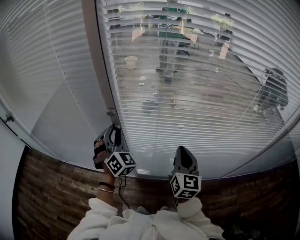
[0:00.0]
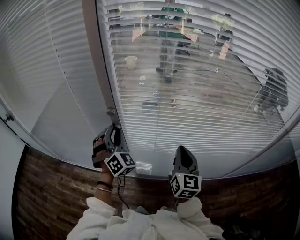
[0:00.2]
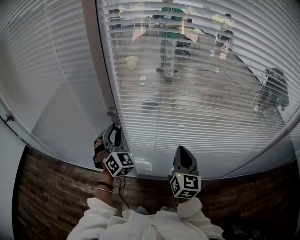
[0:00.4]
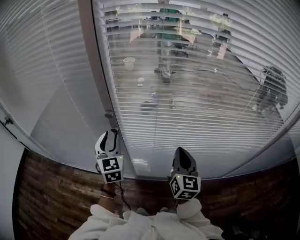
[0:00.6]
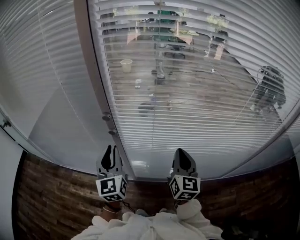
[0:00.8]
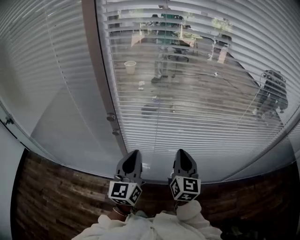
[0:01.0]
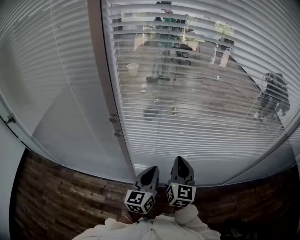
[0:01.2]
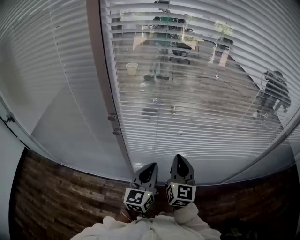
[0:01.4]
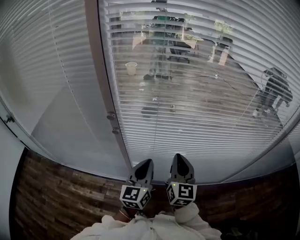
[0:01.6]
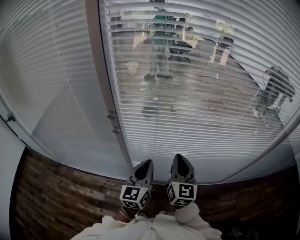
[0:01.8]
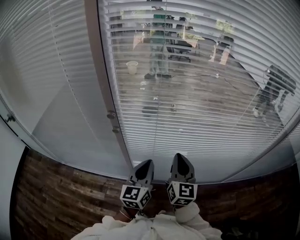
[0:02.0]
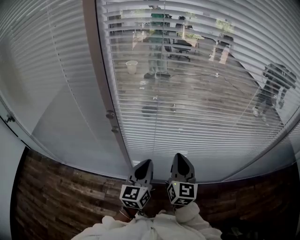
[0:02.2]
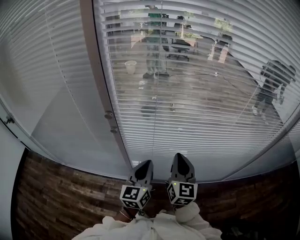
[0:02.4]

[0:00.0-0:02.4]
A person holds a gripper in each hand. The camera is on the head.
0:00.0 to 0:01.2: The left gripper moves to the right and backward, roughly 20 cm, rolls counterclockwise, seen from behind, by approximately 70 degrees, and closes its fingers.
0:01.2 to 0:02.4: There are only small adjustments of the grippers.

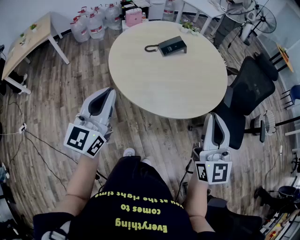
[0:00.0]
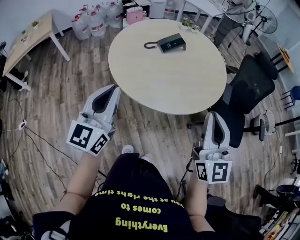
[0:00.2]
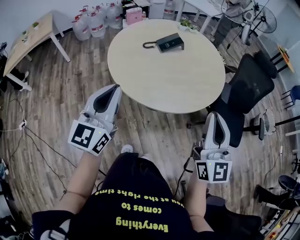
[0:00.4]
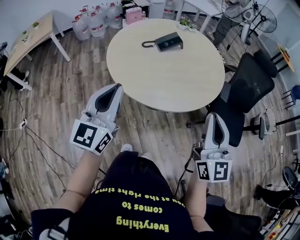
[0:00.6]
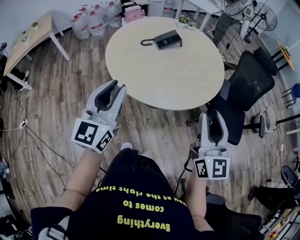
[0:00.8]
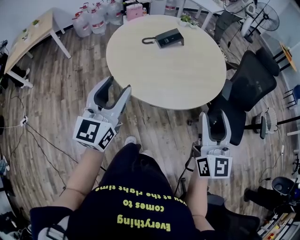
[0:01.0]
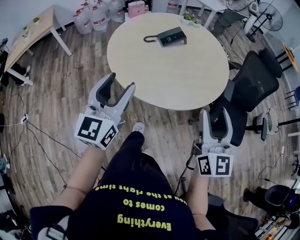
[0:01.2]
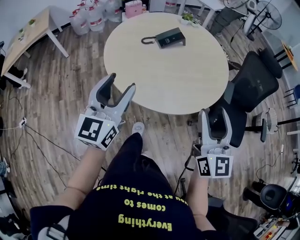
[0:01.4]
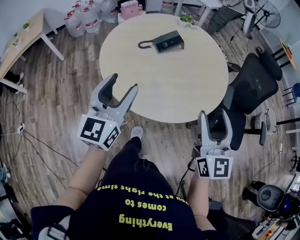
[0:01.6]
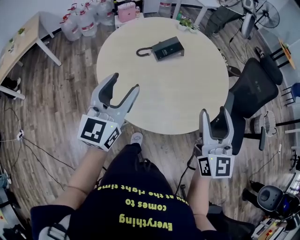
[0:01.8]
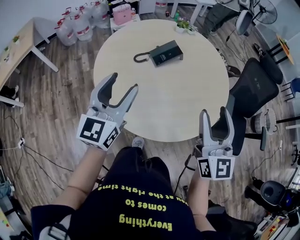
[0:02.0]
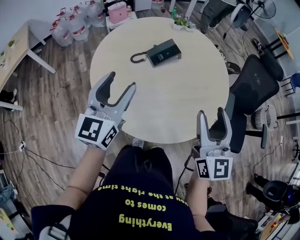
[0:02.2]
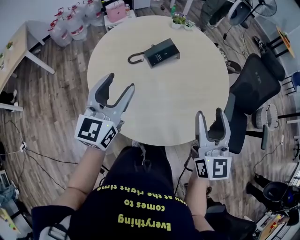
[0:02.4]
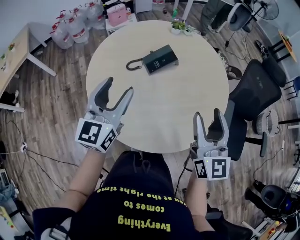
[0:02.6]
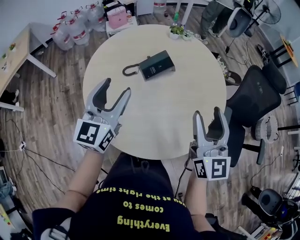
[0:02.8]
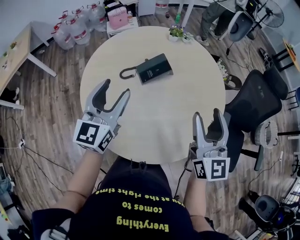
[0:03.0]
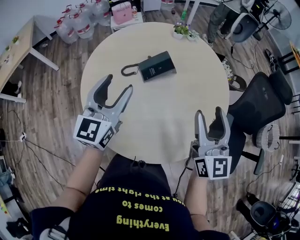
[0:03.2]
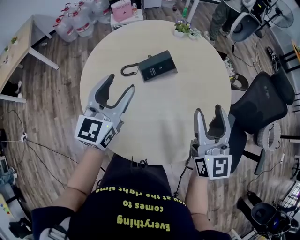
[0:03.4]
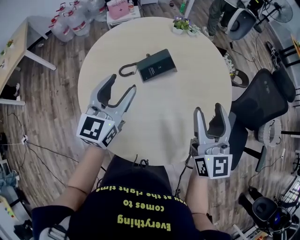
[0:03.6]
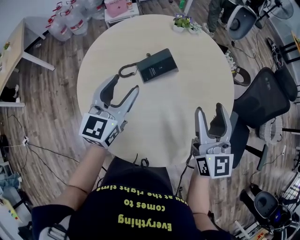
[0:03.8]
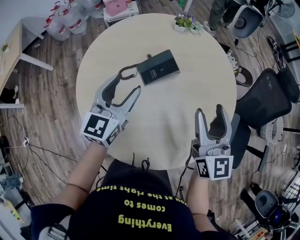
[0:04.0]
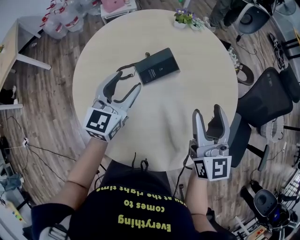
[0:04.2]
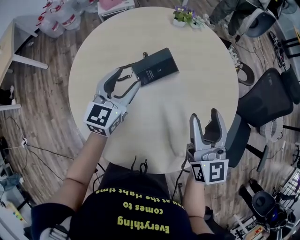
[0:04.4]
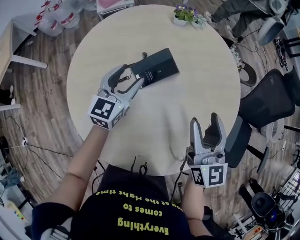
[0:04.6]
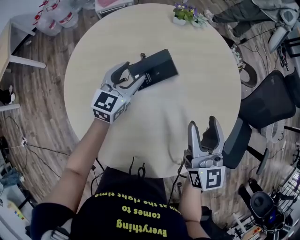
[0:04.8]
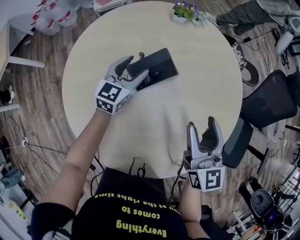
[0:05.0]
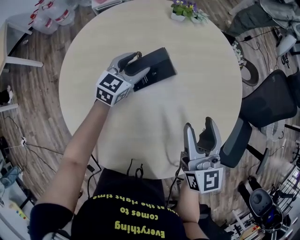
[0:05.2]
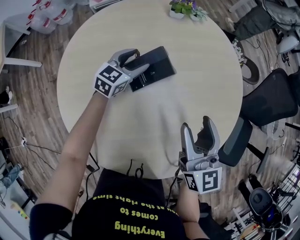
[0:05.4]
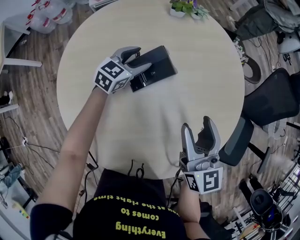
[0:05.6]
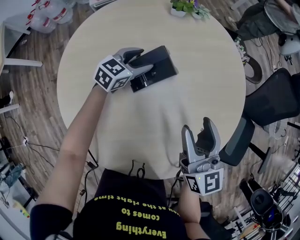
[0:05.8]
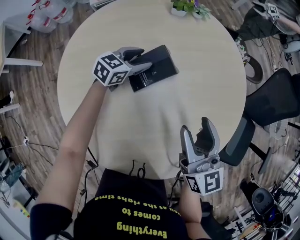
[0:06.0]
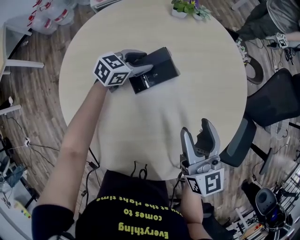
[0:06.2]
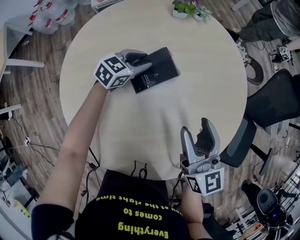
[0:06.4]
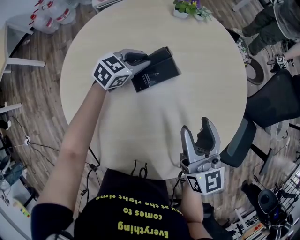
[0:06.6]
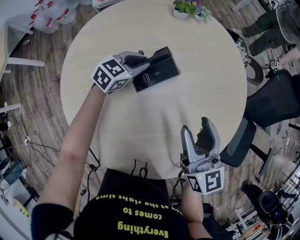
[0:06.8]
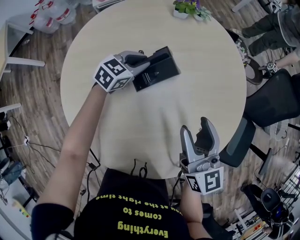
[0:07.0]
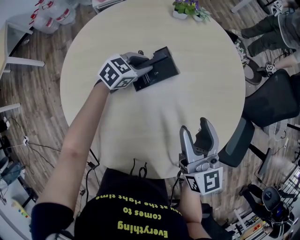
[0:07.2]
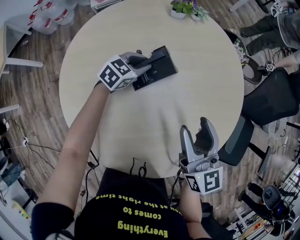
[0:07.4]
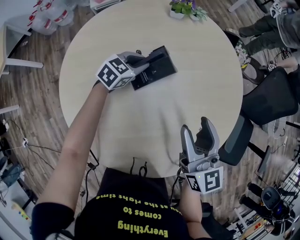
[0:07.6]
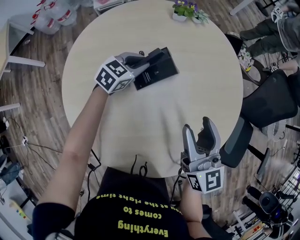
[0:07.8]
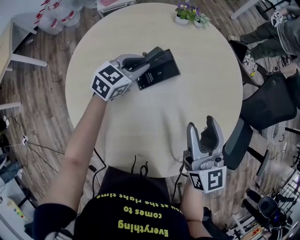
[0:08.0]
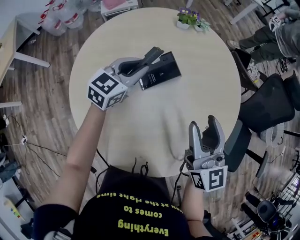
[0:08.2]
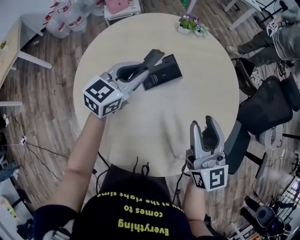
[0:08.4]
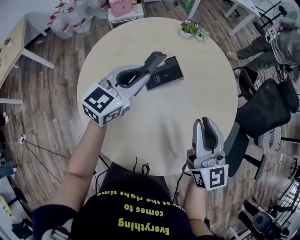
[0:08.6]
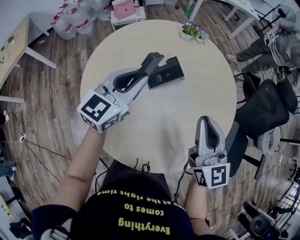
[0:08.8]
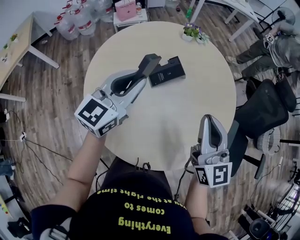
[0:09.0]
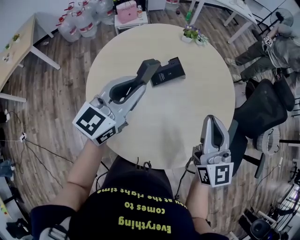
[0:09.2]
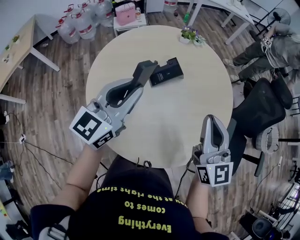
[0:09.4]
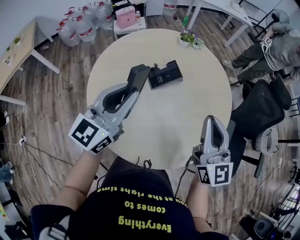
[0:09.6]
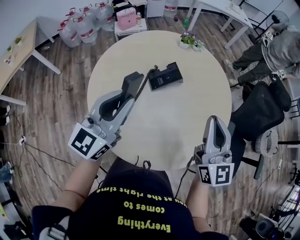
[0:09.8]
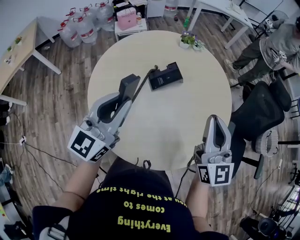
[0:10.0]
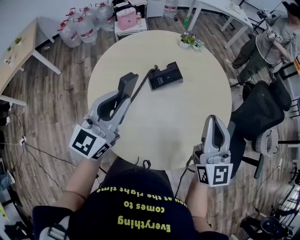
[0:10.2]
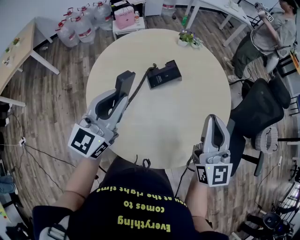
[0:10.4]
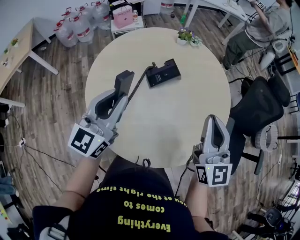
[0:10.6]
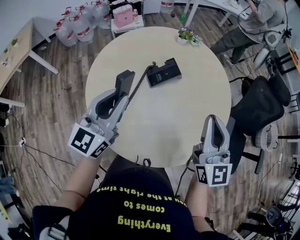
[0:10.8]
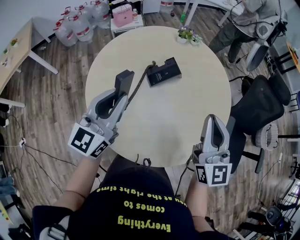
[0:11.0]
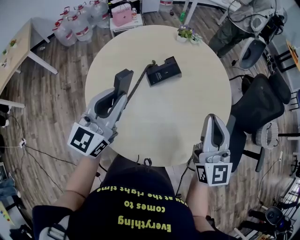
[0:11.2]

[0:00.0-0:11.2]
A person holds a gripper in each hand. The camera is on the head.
0:00.0 to 0:01.6: The left gripper moves forward and to the right, some 10 cm, and opens its fingers. Meanwhile the right gripper goes approximately 10 cm forward, and opens its fingers.
0:01.6 to 0:03.2: Both grippers travel together forward, about 30 cm.
0:03.2 to 0:04.8: The left gripper goes some 30 cm forward and downward, while the right gripper shifts approximately 15 cm downward and forward.
0:04.8 to 0:06.4: The left gripper travels downward and forward by approximately 10 cm, changes its angle by about 30 degrees, and closes its fingers.
0:06.4 to 0:08.0: The left gripper travels upward by about 10 cm.
0:08.0 to 0:09.6: The left gripper heads upward and backward, covering approximately 35 cm, and points its fingers roughly 30 degrees further upward; the right gripper is displaced upward and backward by roughly 15 cm, and closes its fingers.
0:09.6 to 0:11.2: The grippers move only a little.

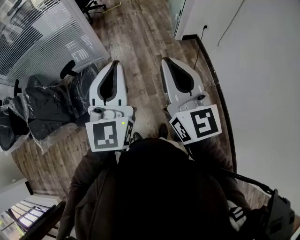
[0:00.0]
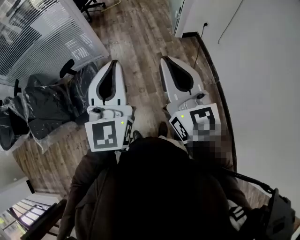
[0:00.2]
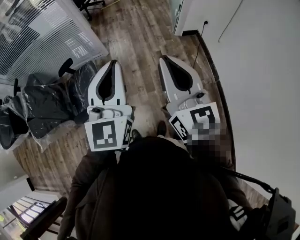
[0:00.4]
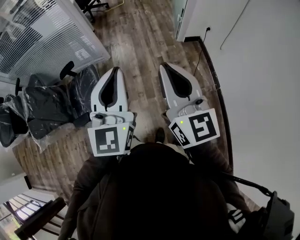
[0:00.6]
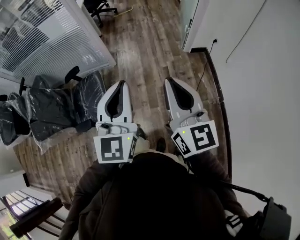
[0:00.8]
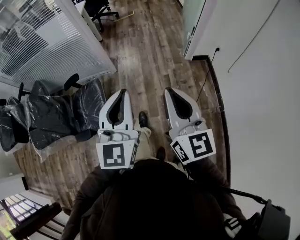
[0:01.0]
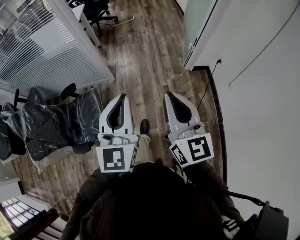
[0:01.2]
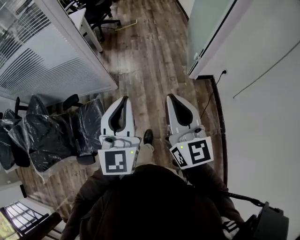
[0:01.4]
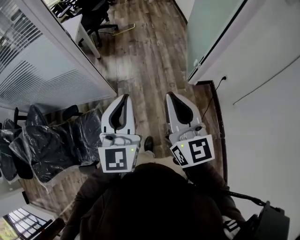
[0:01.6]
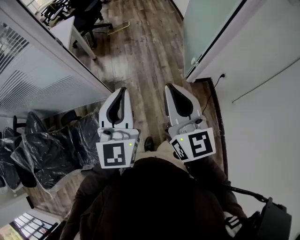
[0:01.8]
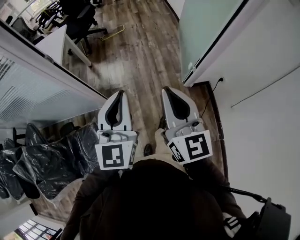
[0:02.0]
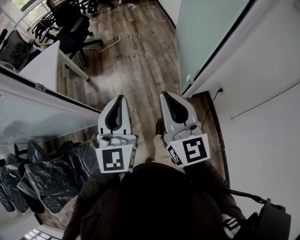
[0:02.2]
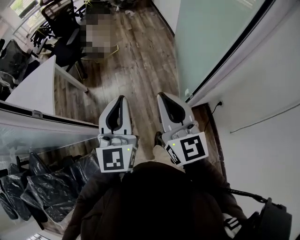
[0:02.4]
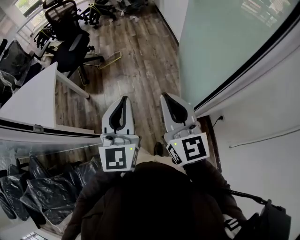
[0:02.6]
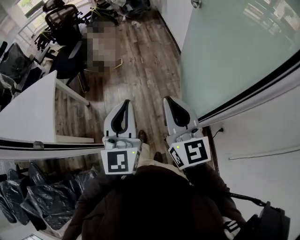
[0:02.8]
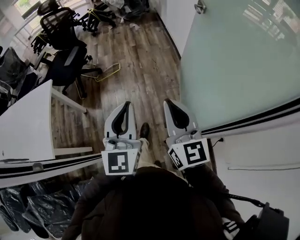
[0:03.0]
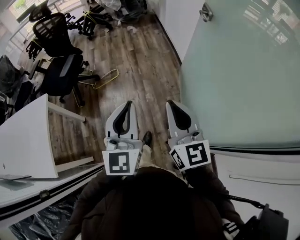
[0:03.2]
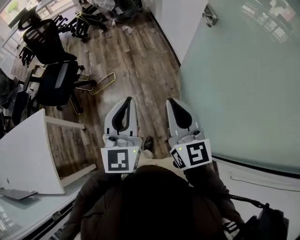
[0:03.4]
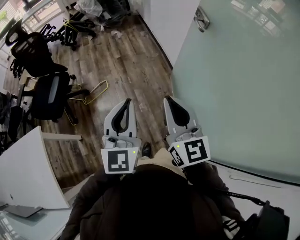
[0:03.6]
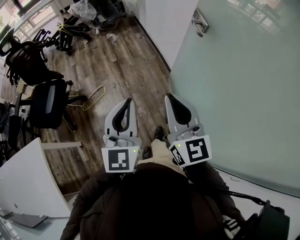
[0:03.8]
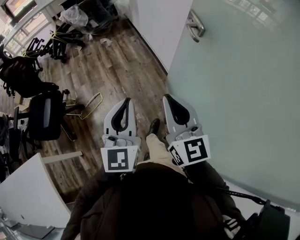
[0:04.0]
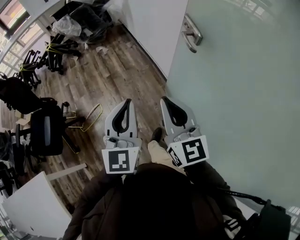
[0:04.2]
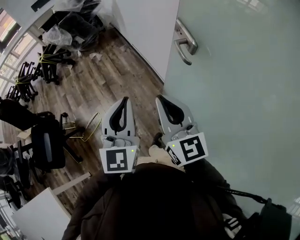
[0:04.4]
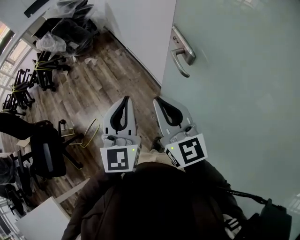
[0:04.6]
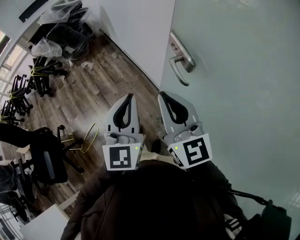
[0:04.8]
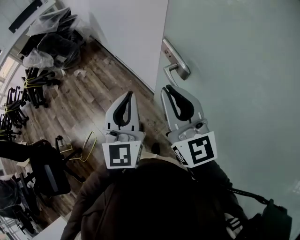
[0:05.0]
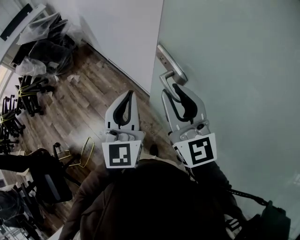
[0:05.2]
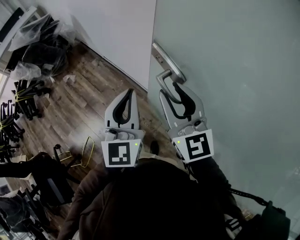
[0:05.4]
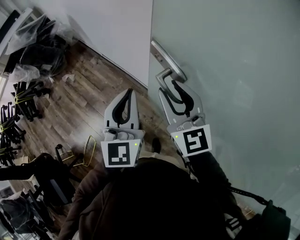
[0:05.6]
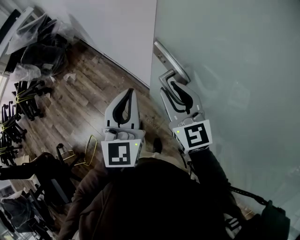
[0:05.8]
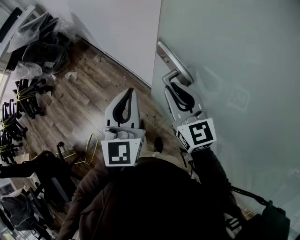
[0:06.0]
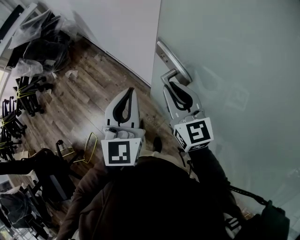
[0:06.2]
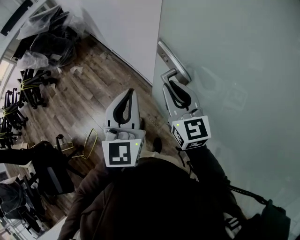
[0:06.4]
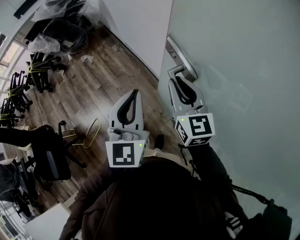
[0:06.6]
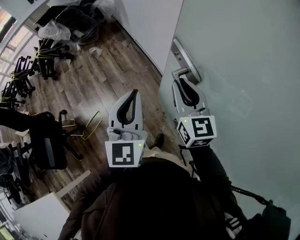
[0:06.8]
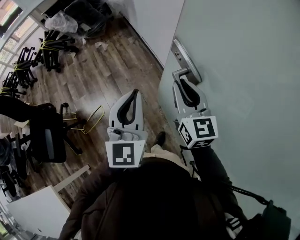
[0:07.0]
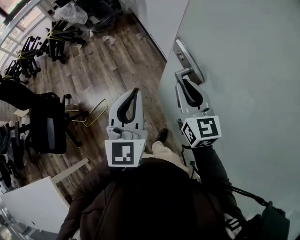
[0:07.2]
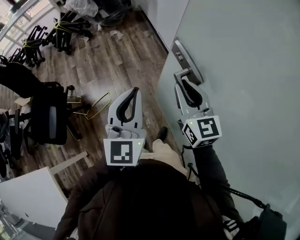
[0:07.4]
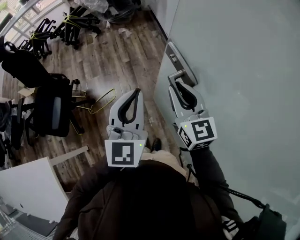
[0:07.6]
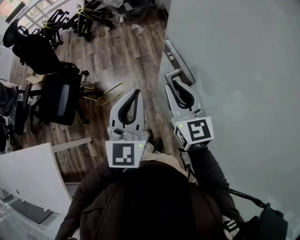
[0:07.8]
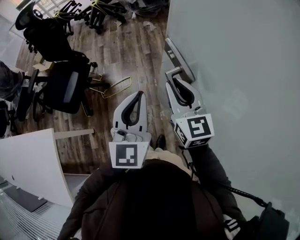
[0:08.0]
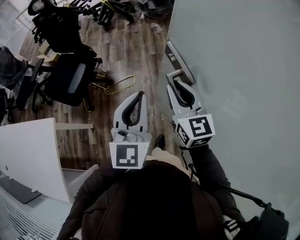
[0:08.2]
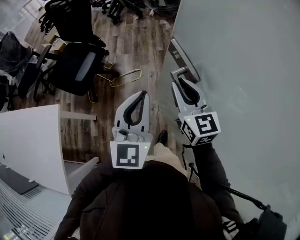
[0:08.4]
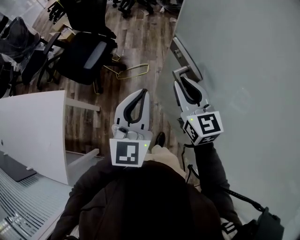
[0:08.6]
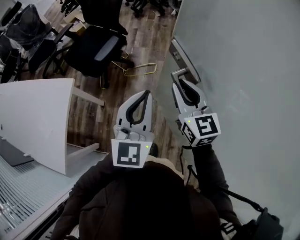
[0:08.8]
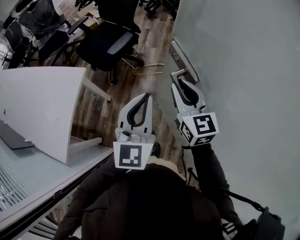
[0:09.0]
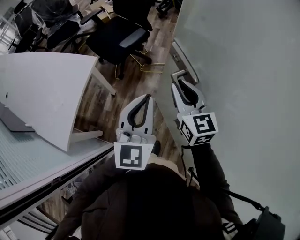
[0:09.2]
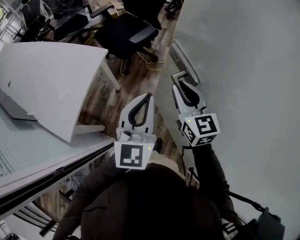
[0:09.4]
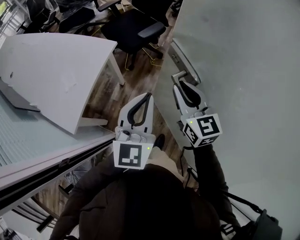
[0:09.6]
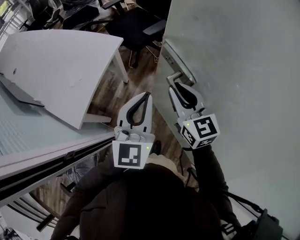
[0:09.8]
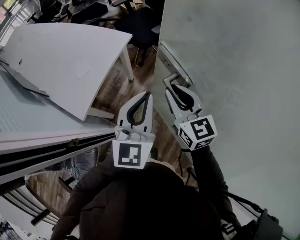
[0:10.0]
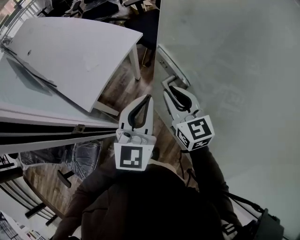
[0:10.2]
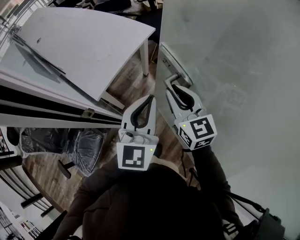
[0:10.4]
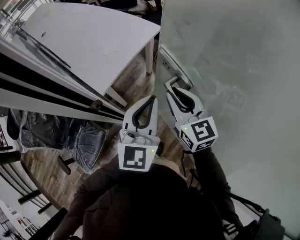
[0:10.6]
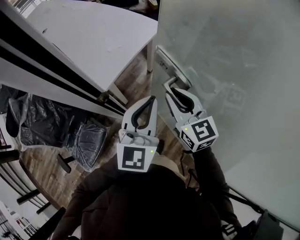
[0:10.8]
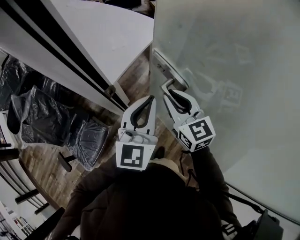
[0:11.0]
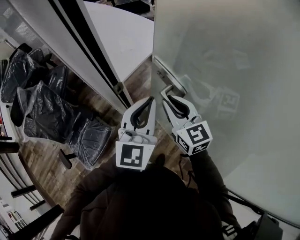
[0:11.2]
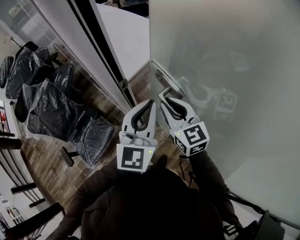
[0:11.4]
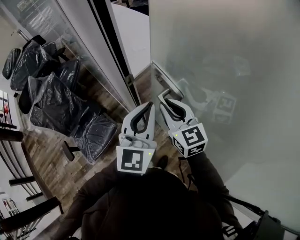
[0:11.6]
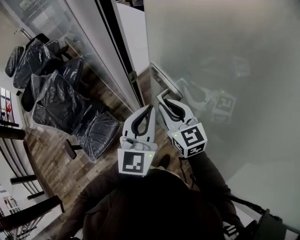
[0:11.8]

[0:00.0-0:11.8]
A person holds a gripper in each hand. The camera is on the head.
0:00.0 to 0:01.4: The grippers both shift forward by approximately 35 cm.
0:01.4 to 0:03.0: The two grippers travel together, forward, approximately 70 cm.
0:03.0 to 0:04.4: The two grippers travel together, forward, some 60 cm. The left gripper rotates some 20 degrees.
0:04.4 to 0:06.0: The grippers both shift forward by about 20 cm. The right gripper rotates roughly 20 degrees.
0:06.0 to 0:07.4: Both grippers move to the left and backward, roughly 30 cm. The right gripper changes its angle by some 20 degrees; the left gripper changes its angle by about 20 degrees.
0:07.4 to 0:08.8: Both grippers are carried some 40 cm. The left gripper changes its angle by roughly 30 degrees, while the right gripper swivels approximately 30 degrees.
0:08.8 to 0:10.4: The two grippers travel together, approximately 40 cm. The left gripper changes its angle by approximately 30 degrees. The right gripper changes its angle by about 30 degrees.
0:10.4 to 0:11.8: The two grippers go some 25 cm to the left and backward.
